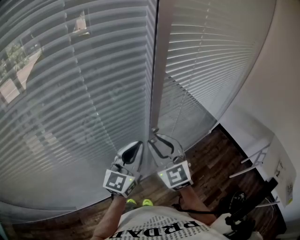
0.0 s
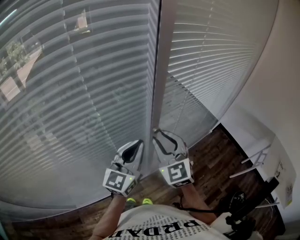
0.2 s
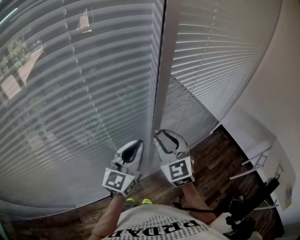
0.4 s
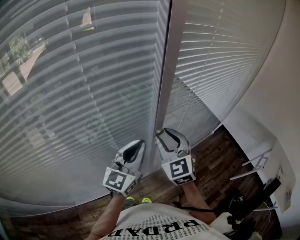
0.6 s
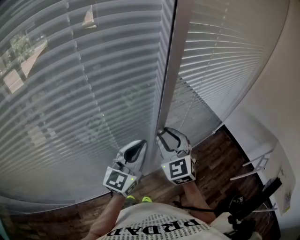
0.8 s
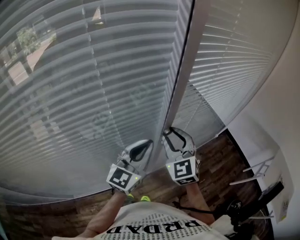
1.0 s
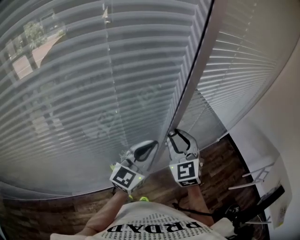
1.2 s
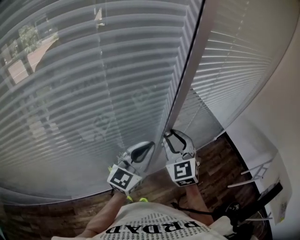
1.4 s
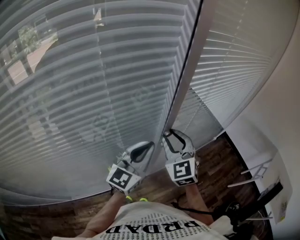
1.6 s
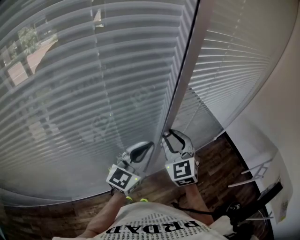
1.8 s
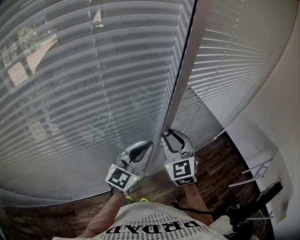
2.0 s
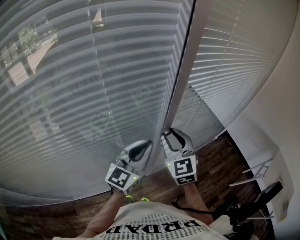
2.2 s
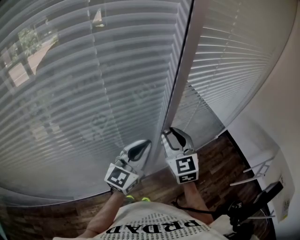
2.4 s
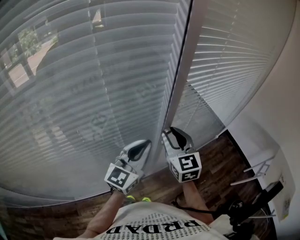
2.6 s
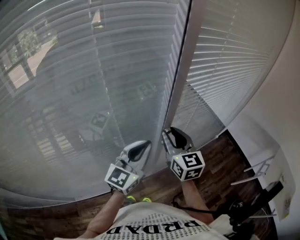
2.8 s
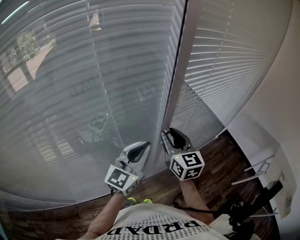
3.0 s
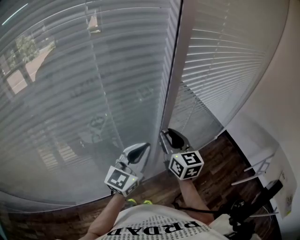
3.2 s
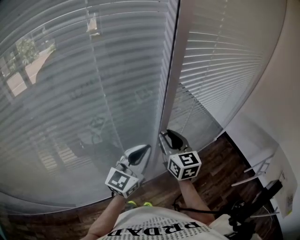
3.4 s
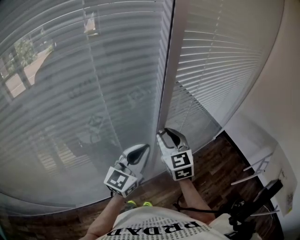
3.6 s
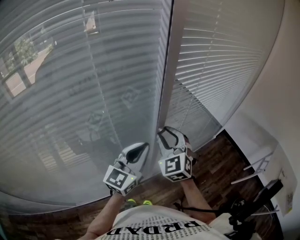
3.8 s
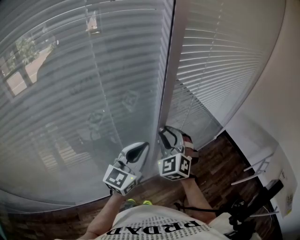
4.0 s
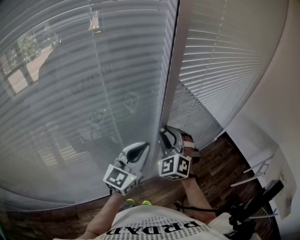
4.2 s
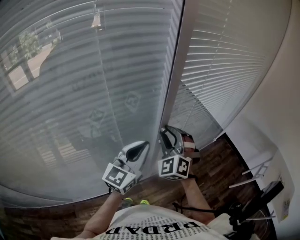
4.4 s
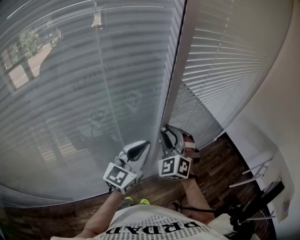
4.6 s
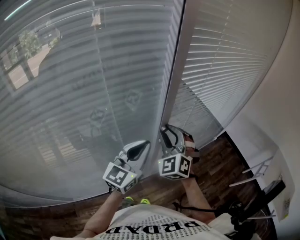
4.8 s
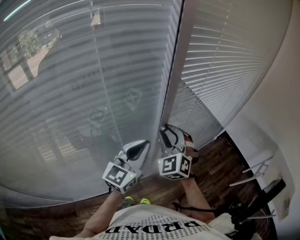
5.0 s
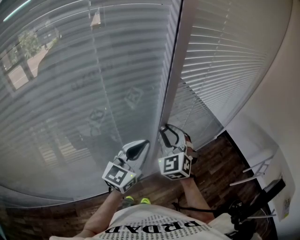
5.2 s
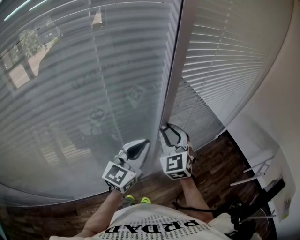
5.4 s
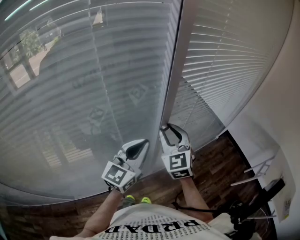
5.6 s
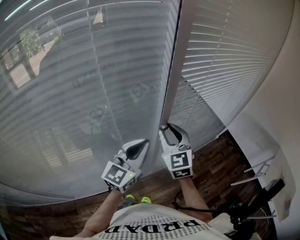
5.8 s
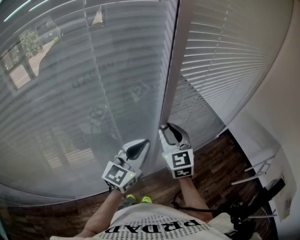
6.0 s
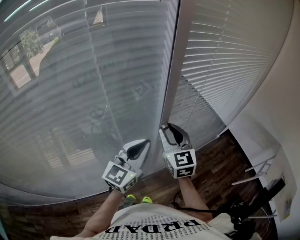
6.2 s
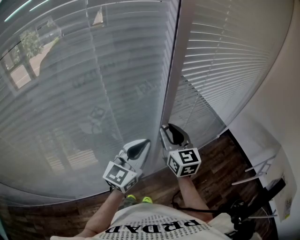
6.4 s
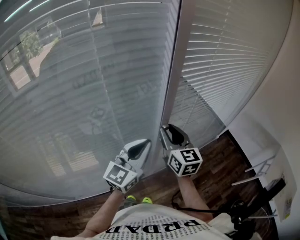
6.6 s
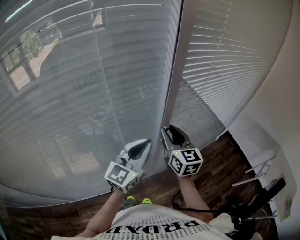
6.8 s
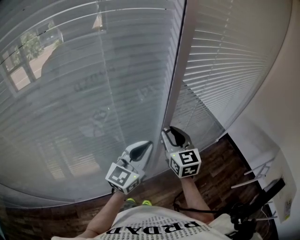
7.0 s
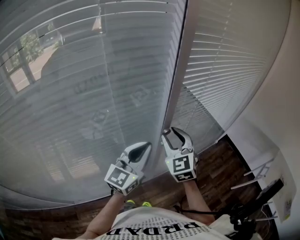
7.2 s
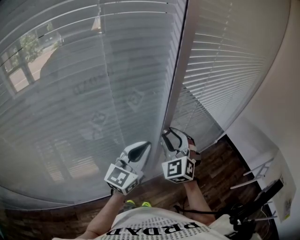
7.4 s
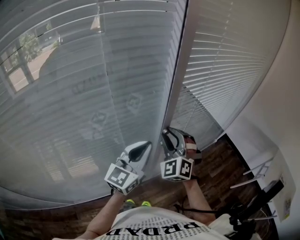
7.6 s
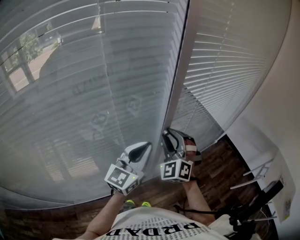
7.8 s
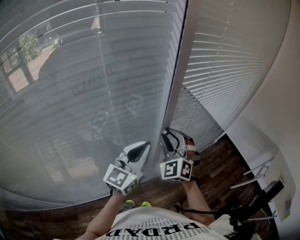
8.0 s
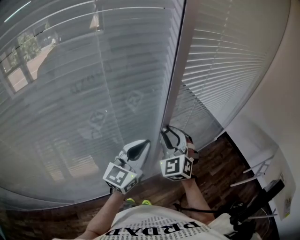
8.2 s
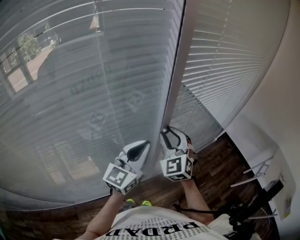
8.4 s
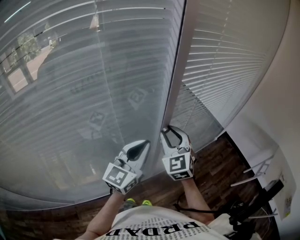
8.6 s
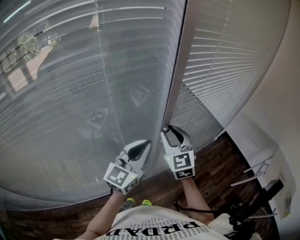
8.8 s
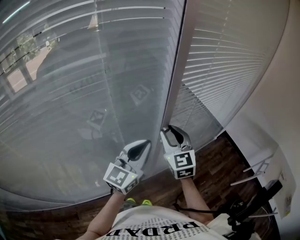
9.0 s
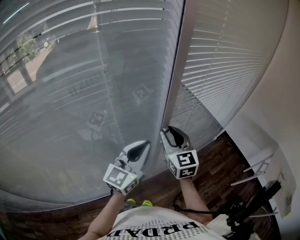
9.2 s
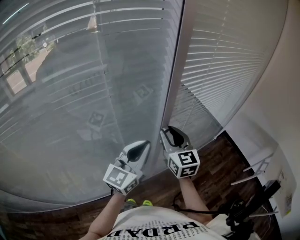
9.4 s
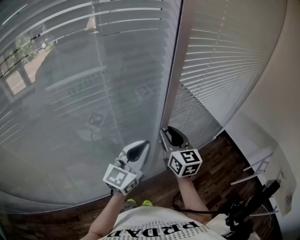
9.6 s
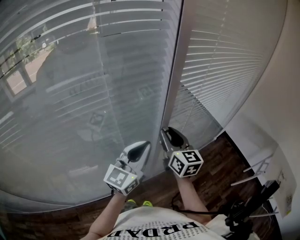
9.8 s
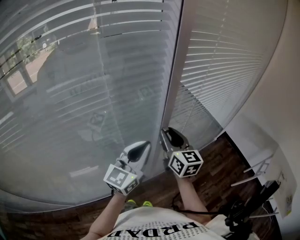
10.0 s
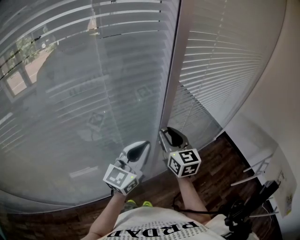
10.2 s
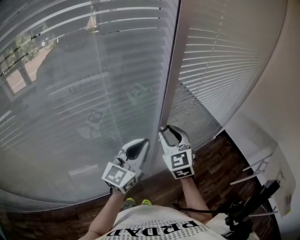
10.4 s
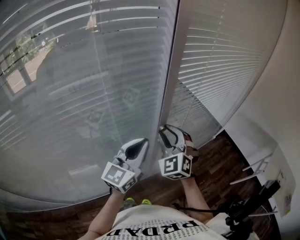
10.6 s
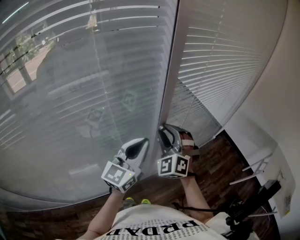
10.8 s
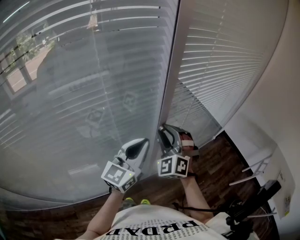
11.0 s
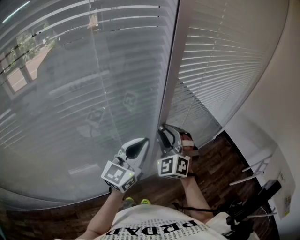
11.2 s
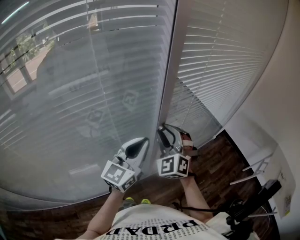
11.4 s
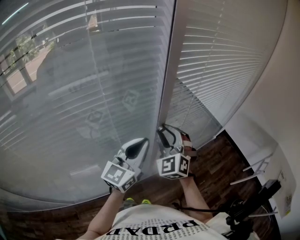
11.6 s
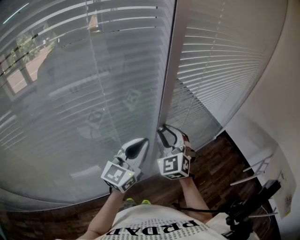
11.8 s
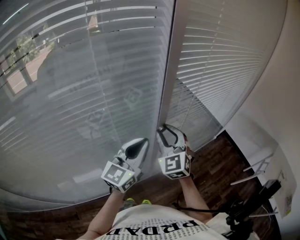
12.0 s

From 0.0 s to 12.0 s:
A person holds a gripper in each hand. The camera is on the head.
From 0.0 s to 1.6 s: The right gripper goes some 5 cm forward.
From 1.6 s to 3.0 s: The right gripper turns by approximately 40 degrees.
From 3.0 s to 4.4 s: The right gripper rolls counterclockwise, seen from behind, by approximately 60 degrees.
From 4.4 s to 6.0 s: The right gripper swivels roughly 40 degrees.
From 6.0 s to 7.6 s: The right gripper twists some 40 degrees counterclockwise, seen from behind.
From 7.6 s to 9.0 s: The right gripper rotates around the line of its fingers by roughly 40 degrees, clockwise from behind.

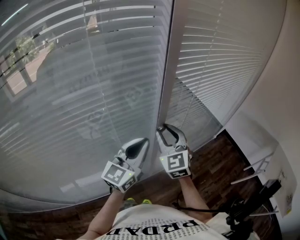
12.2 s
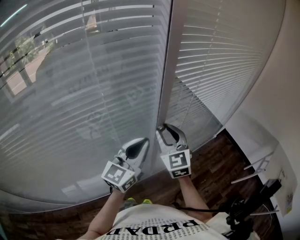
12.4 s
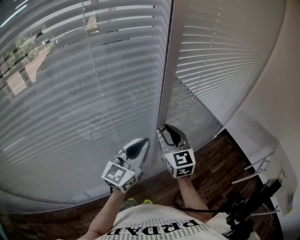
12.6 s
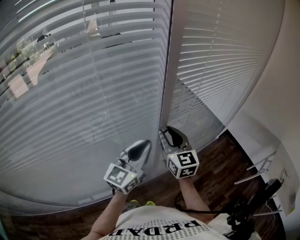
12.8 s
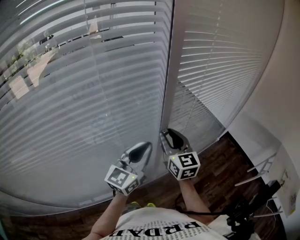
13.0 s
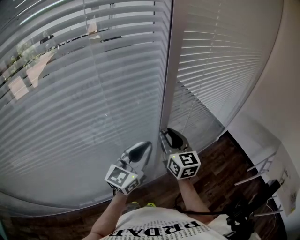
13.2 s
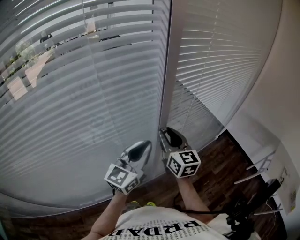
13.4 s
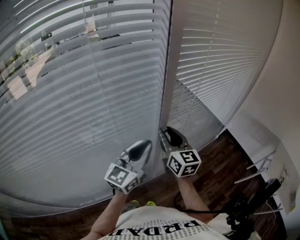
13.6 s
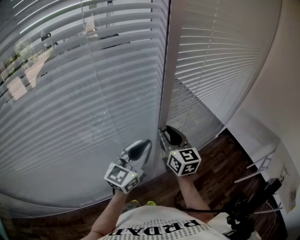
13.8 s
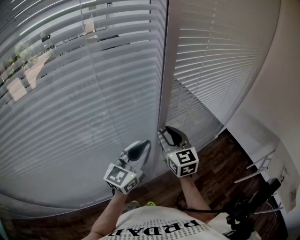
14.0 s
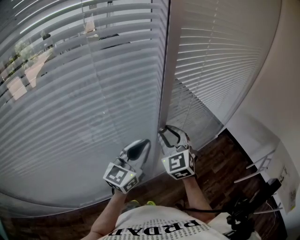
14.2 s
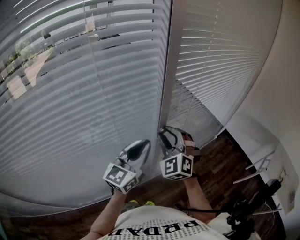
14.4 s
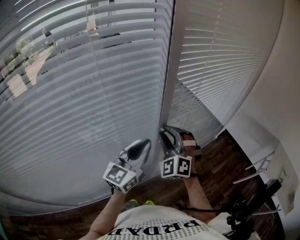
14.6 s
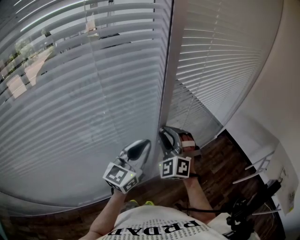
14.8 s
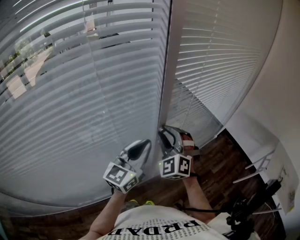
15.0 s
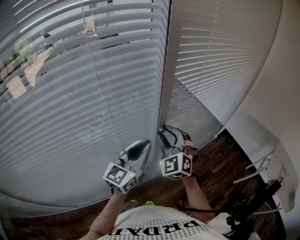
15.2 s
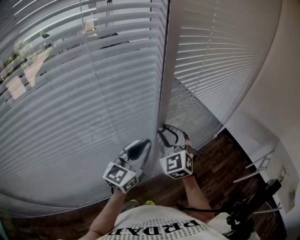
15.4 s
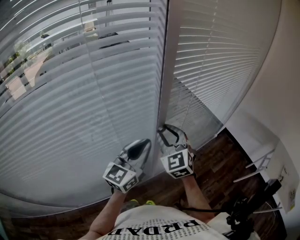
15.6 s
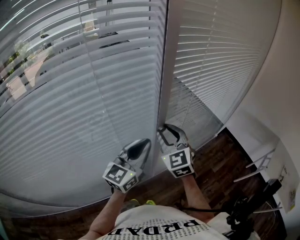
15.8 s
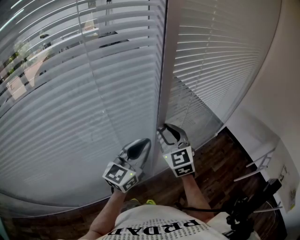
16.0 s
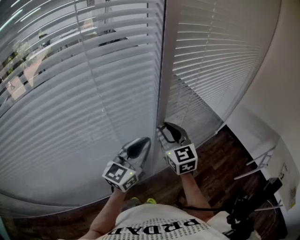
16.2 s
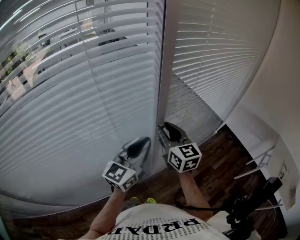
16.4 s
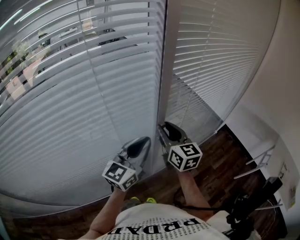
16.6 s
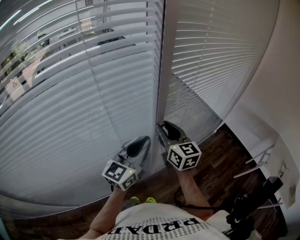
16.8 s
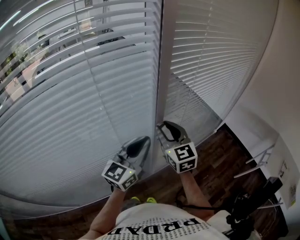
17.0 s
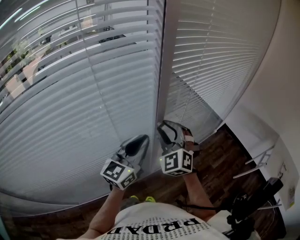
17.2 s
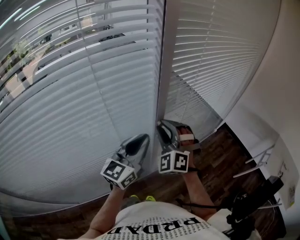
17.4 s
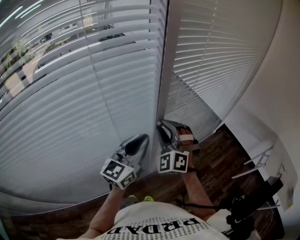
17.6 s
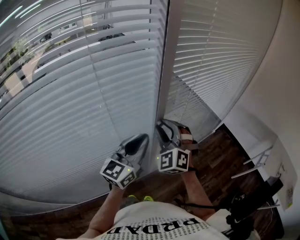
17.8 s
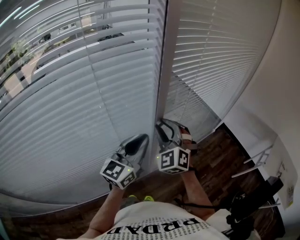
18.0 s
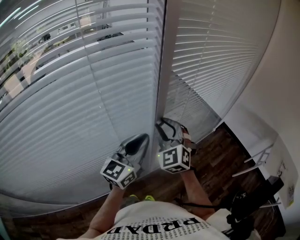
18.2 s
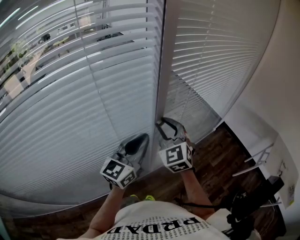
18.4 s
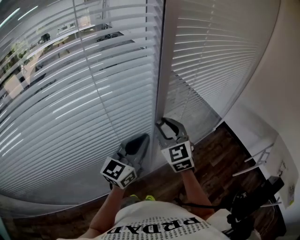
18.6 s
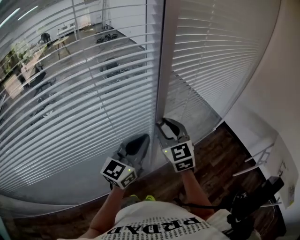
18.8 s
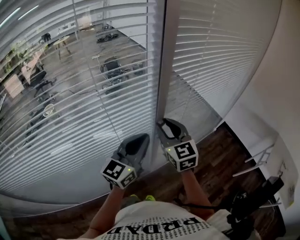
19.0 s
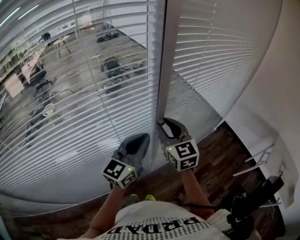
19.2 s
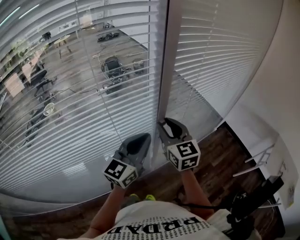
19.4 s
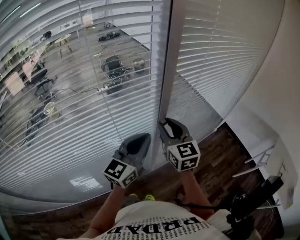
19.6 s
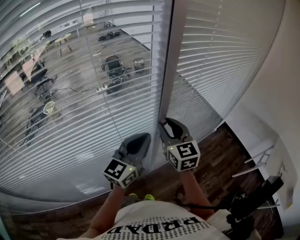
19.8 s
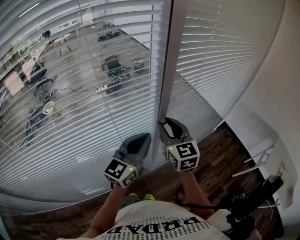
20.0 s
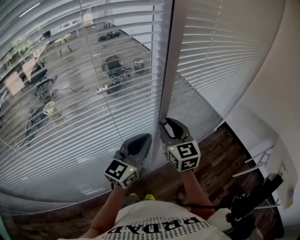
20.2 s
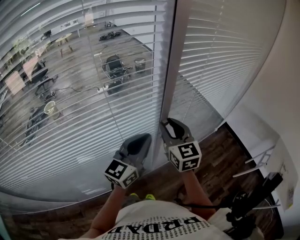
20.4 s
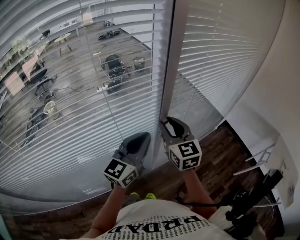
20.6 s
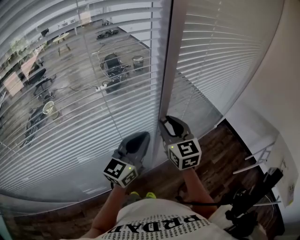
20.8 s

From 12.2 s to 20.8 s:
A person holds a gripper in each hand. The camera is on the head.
From 12.2 s to 13.6 s: The right gripper rotates some 40 degrees.
From 13.6 s to 15.0 s: The right gripper rolls counterclockwise, seen from behind, by approximately 70 degrees.
From 15.0 s to 16.6 s: The right gripper twists about 70 degrees clockwise, seen from behind.
From 16.6 s to 18.0 s: The right gripper rotates around the line of its fingers by about 60 degrees, counterclockwise from behind.
From 18.0 s to 19.4 s: The right gripper rotates around the line of its fingers by roughly 50 degrees, clockwise from behind.
From 19.4 s to 20.8 s: The grippers stay close to where they were, moving slightly.

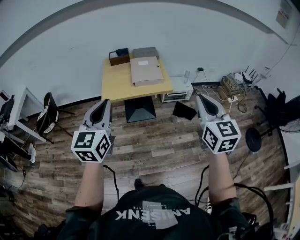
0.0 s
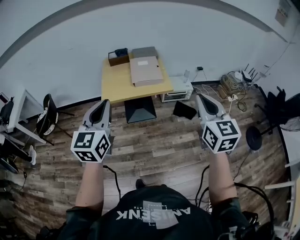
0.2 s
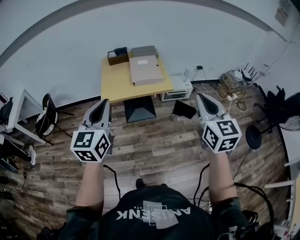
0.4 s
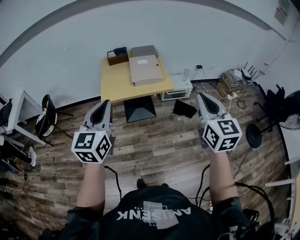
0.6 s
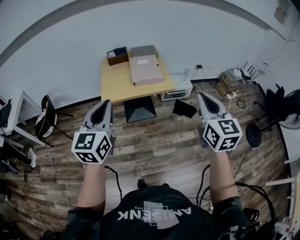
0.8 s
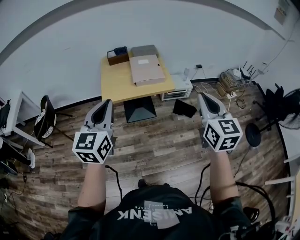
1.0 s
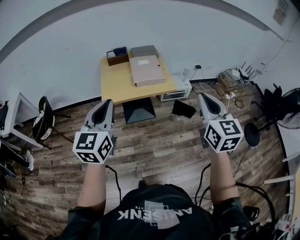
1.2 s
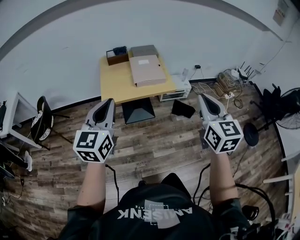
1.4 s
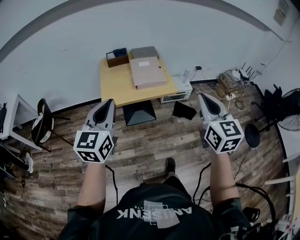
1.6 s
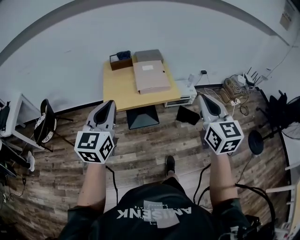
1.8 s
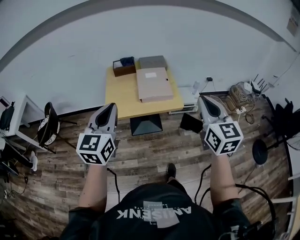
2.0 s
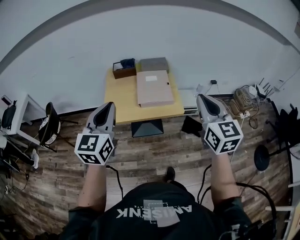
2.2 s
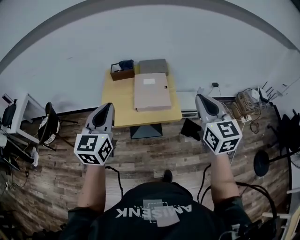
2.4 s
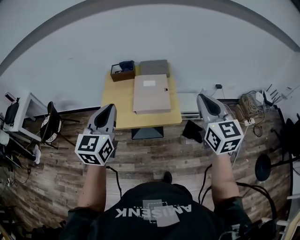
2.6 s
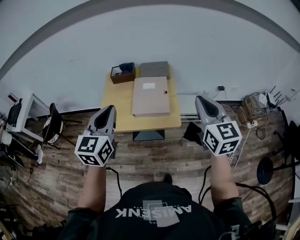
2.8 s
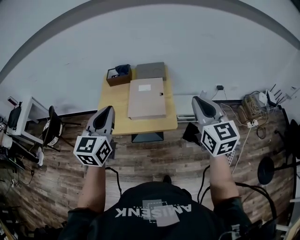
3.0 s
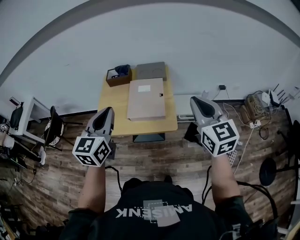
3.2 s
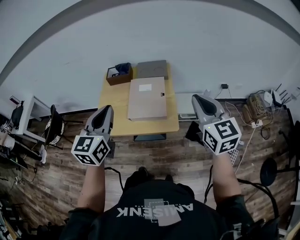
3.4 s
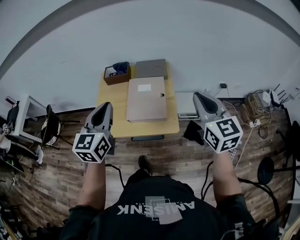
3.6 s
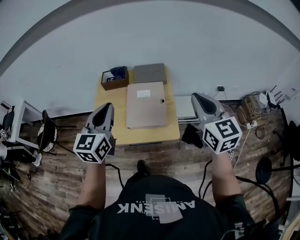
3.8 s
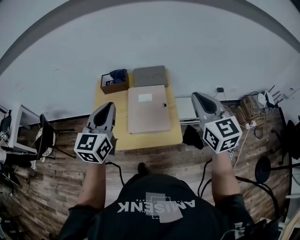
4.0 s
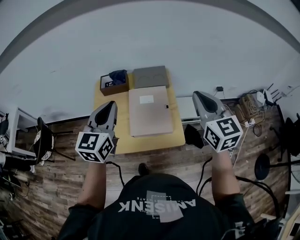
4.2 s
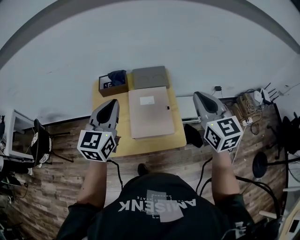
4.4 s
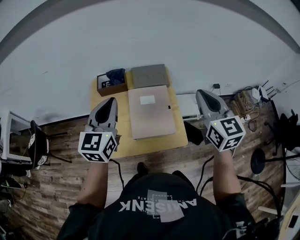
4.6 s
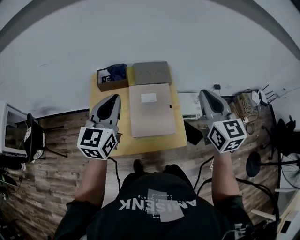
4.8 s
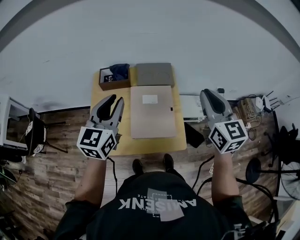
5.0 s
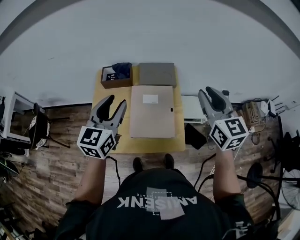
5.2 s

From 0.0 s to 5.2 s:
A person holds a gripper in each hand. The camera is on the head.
From 0.0 s to 1.8 s: Both grippers move forward and to the left, approximately 10 cm.
From 1.8 s to 3.4 s: Both grippers move forward and to the right, some 30 cm.
From 3.4 s to 5.2 s: The two grippers go some 20 cm forward. The left gripper opens.
